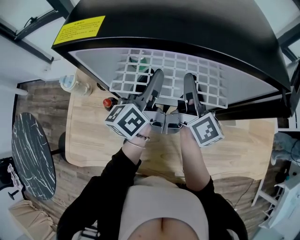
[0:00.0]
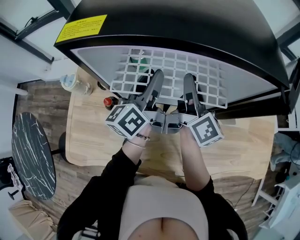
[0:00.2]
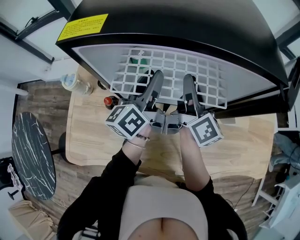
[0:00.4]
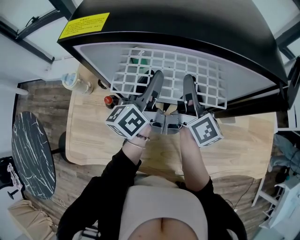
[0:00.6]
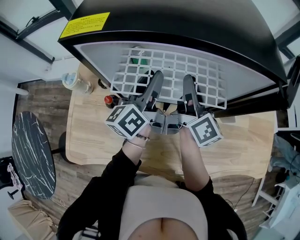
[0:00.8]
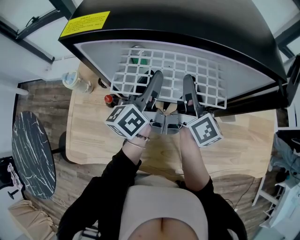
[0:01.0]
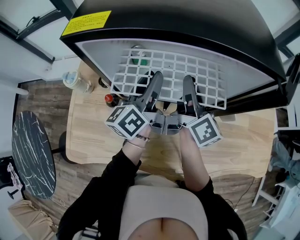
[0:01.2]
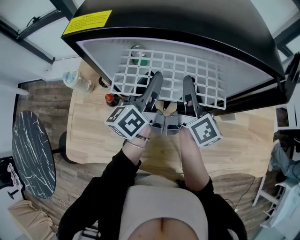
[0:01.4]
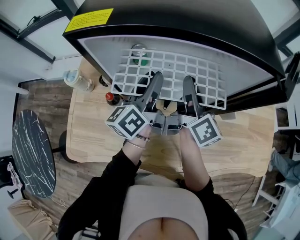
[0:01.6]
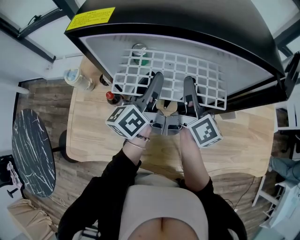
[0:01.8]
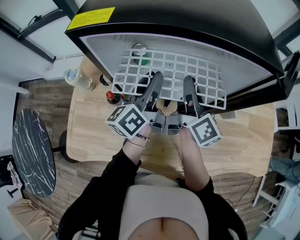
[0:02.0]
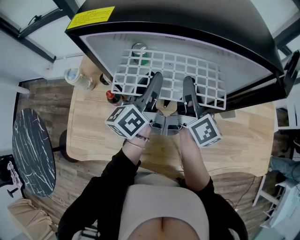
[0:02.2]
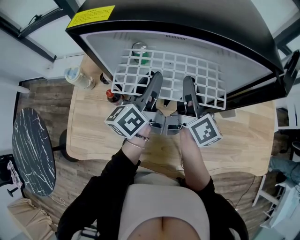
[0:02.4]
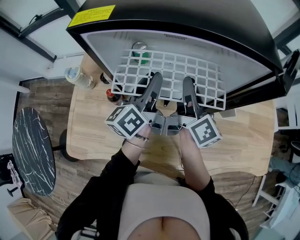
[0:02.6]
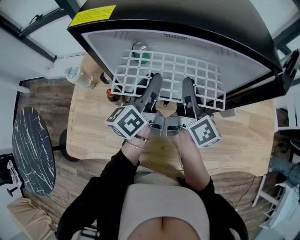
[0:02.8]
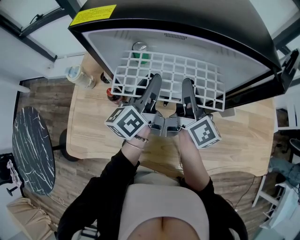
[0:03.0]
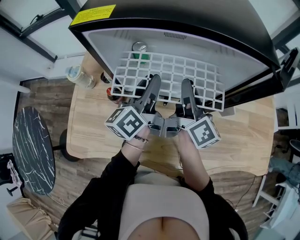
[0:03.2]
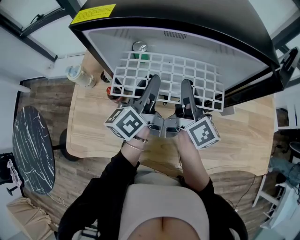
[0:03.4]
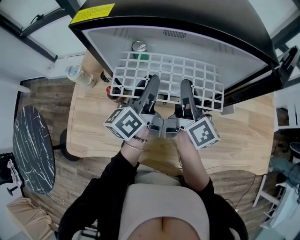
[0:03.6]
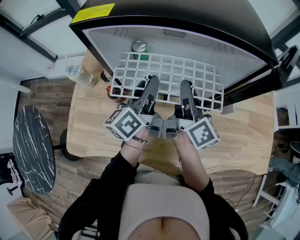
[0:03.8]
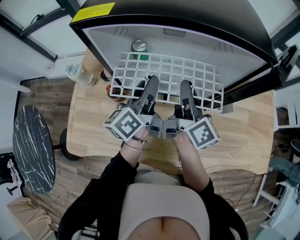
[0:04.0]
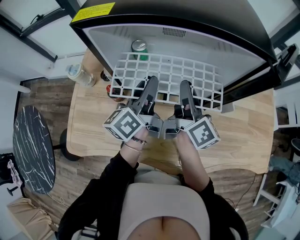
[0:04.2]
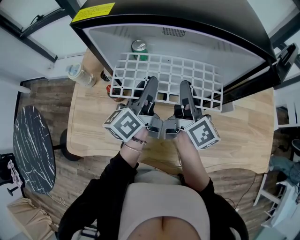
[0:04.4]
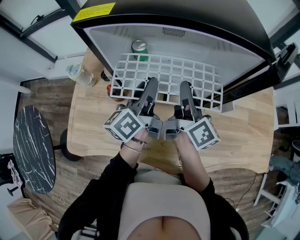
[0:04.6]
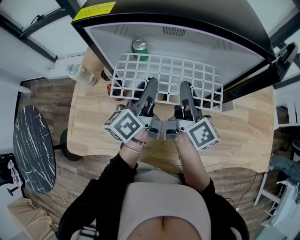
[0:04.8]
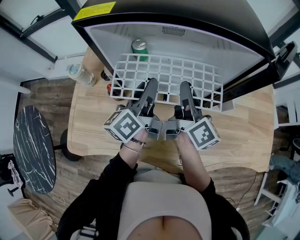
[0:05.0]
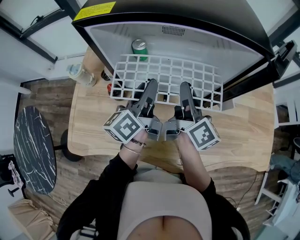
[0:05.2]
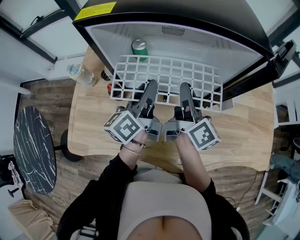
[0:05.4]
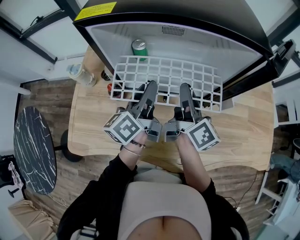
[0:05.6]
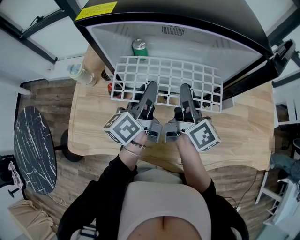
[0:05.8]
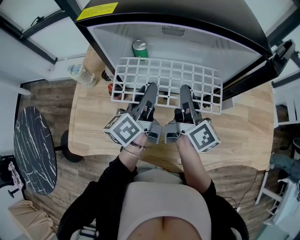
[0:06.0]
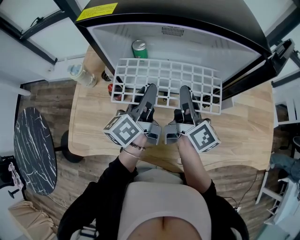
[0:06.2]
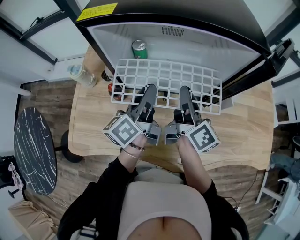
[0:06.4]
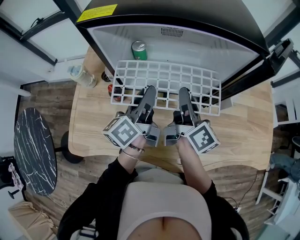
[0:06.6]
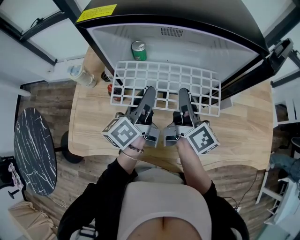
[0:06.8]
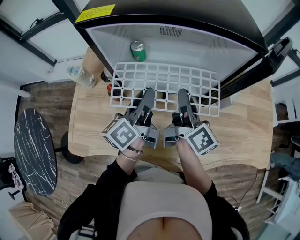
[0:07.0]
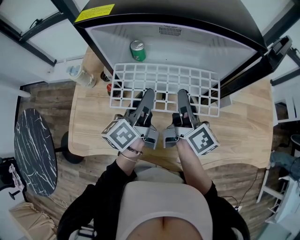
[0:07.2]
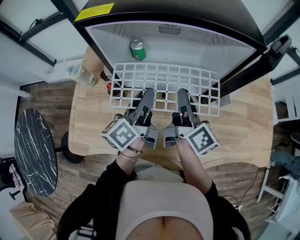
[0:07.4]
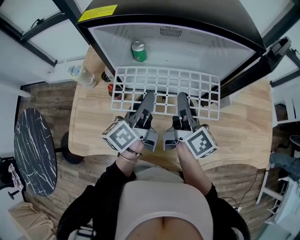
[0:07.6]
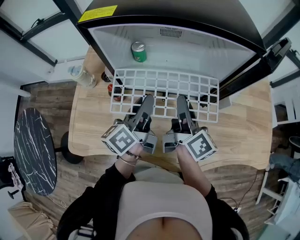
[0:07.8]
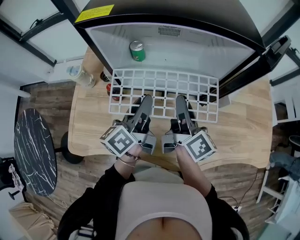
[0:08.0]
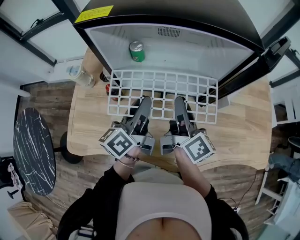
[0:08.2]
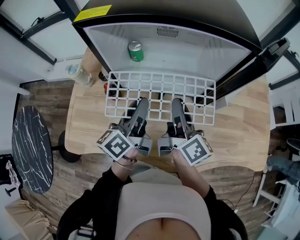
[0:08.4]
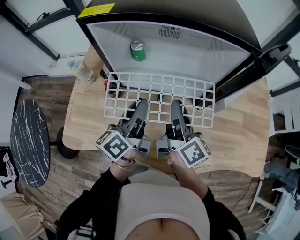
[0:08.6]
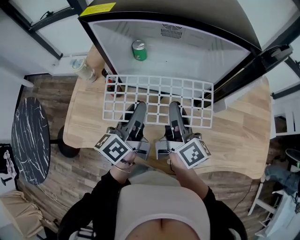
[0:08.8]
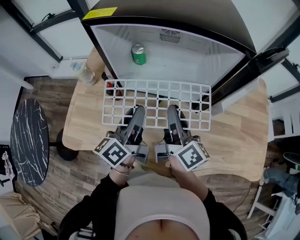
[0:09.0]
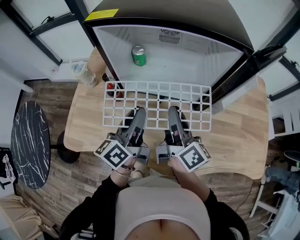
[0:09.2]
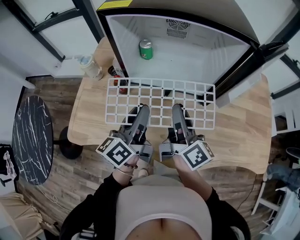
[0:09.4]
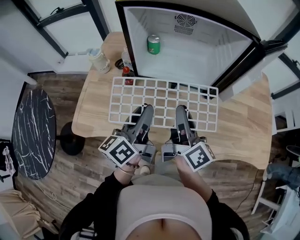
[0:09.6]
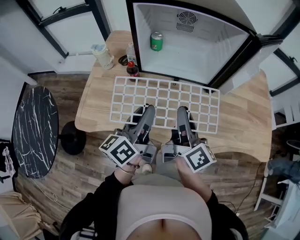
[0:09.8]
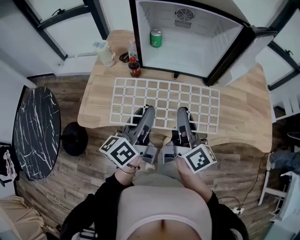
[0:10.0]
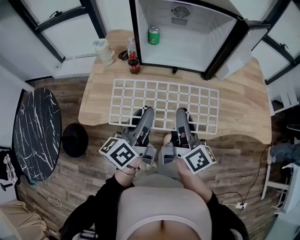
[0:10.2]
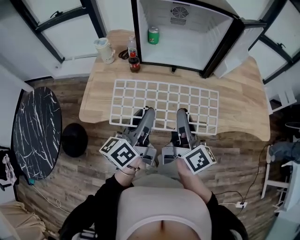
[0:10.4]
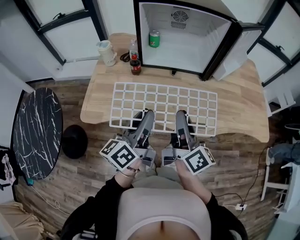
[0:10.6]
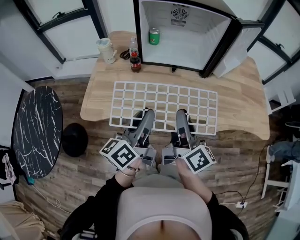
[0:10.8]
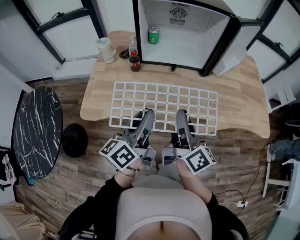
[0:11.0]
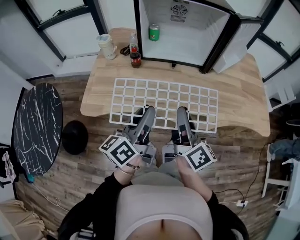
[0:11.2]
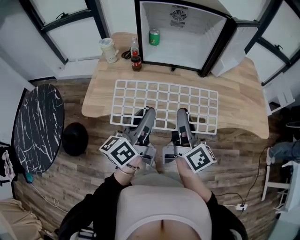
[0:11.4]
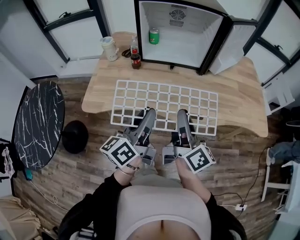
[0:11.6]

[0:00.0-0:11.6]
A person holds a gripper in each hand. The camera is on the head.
0:00.0 to 0:02.8: The grippers stay close to where they were, moving slightly.
0:02.8 to 0:05.8: The grippers move only a little.
0:05.8 to 0:07.2: There are only small adjustments of the grippers.
0:07.2 to 0:08.8: The left gripper heads backward, covering some 5 cm.
0:08.8 to 0:10.2: Both grippers travel together backward, some 20 cm.
0:10.2 to 0:11.6: Both grippers move backward, roughly 10 cm.

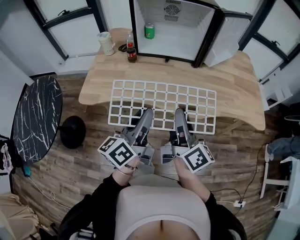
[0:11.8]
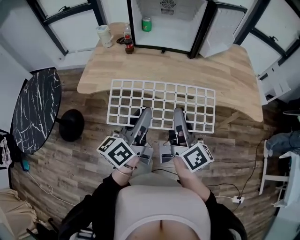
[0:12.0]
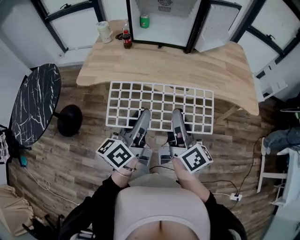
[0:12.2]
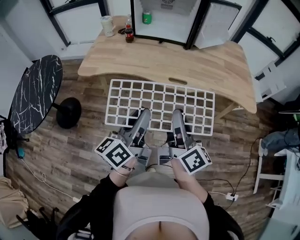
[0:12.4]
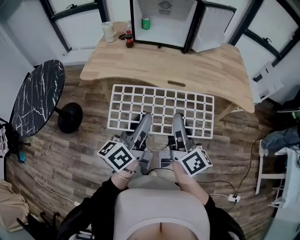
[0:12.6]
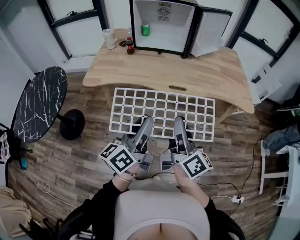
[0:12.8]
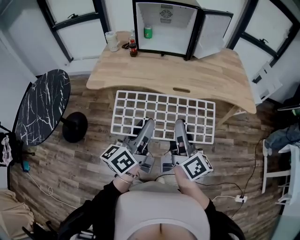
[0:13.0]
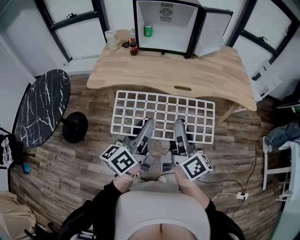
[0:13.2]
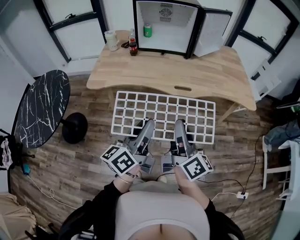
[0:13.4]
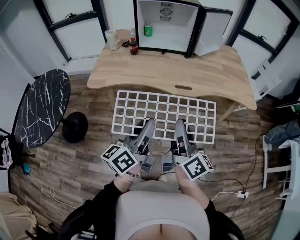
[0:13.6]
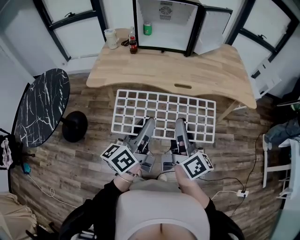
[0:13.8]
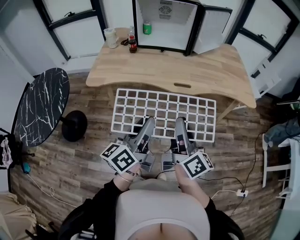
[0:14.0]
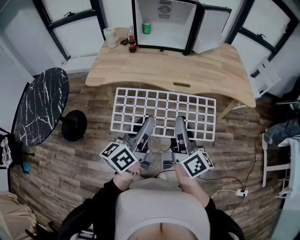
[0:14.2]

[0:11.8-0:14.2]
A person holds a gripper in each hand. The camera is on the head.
0:11.8 to 0:13.0: The grippers both shift backward by some 20 cm.
0:13.0 to 0:14.2: The grippers move only a little.

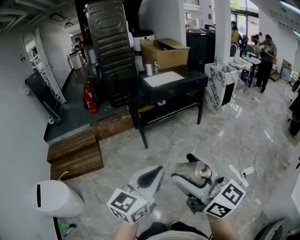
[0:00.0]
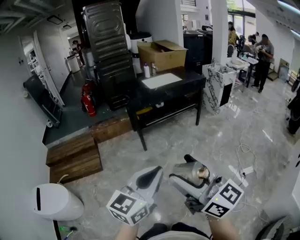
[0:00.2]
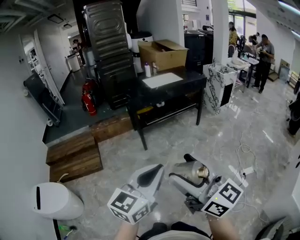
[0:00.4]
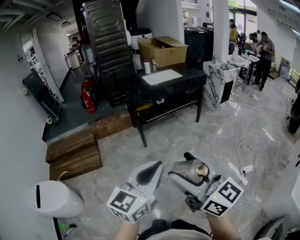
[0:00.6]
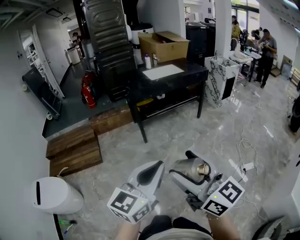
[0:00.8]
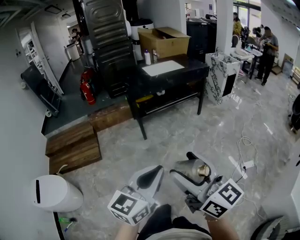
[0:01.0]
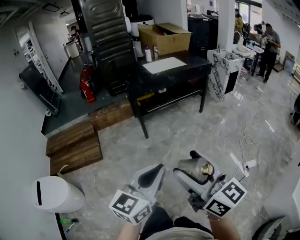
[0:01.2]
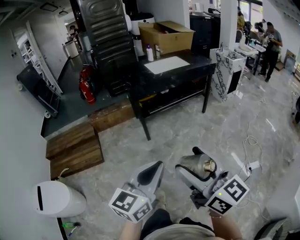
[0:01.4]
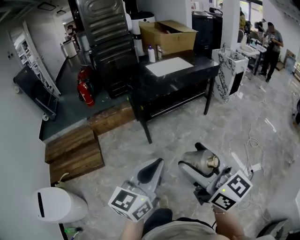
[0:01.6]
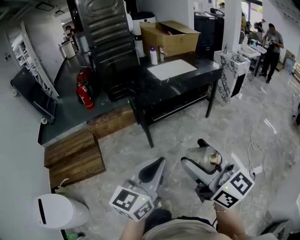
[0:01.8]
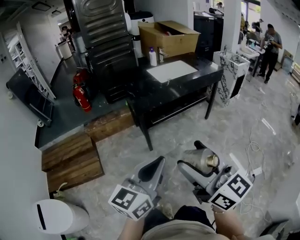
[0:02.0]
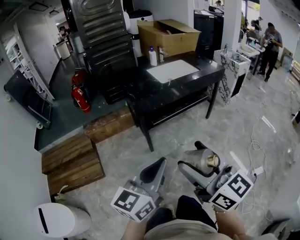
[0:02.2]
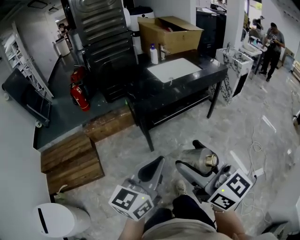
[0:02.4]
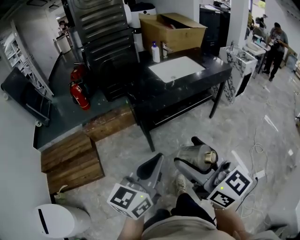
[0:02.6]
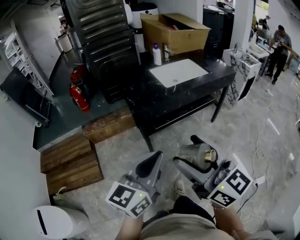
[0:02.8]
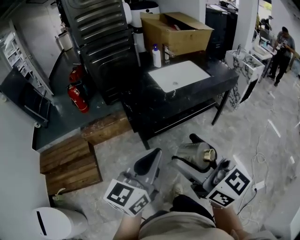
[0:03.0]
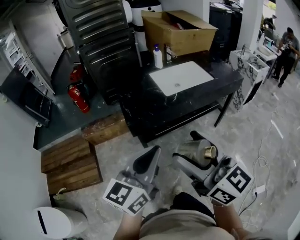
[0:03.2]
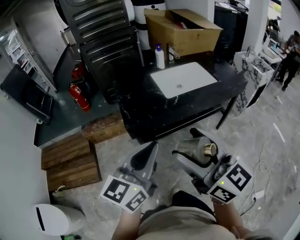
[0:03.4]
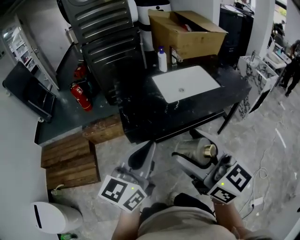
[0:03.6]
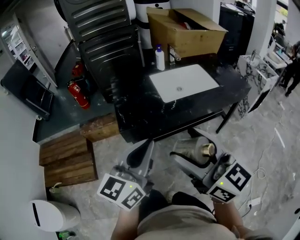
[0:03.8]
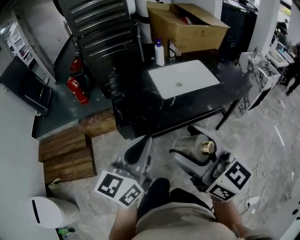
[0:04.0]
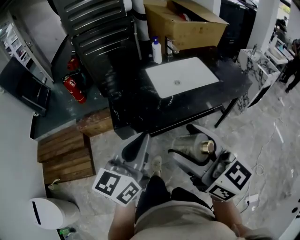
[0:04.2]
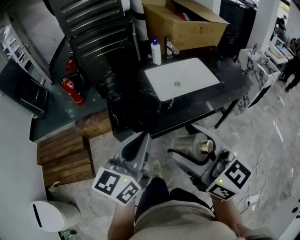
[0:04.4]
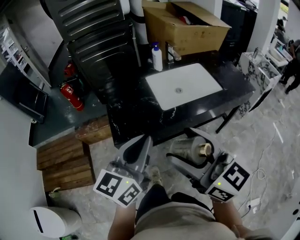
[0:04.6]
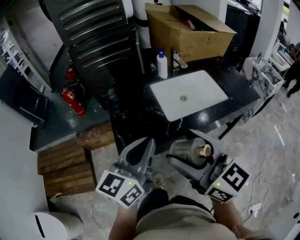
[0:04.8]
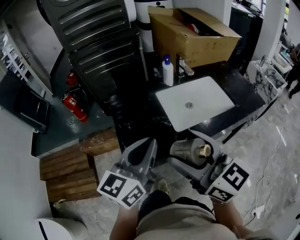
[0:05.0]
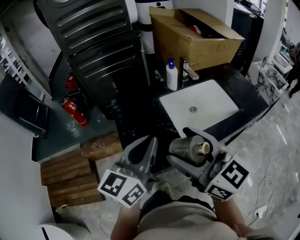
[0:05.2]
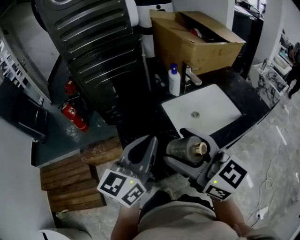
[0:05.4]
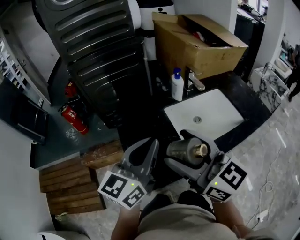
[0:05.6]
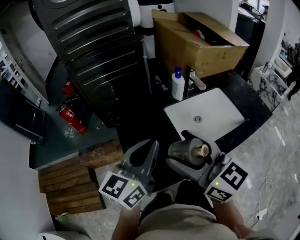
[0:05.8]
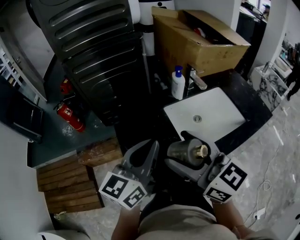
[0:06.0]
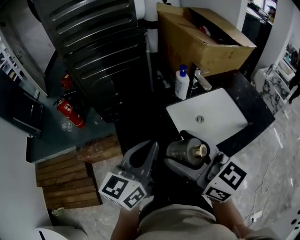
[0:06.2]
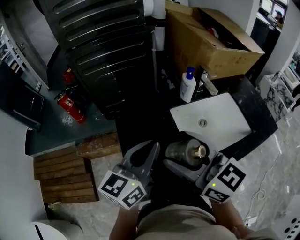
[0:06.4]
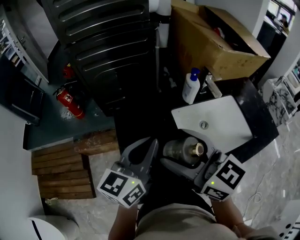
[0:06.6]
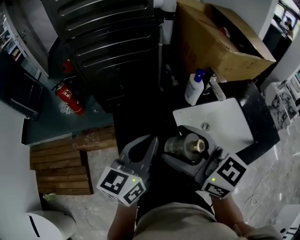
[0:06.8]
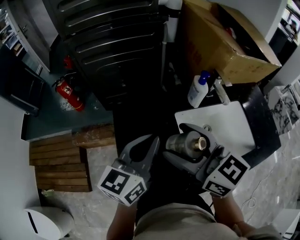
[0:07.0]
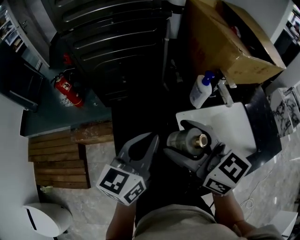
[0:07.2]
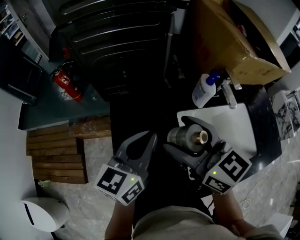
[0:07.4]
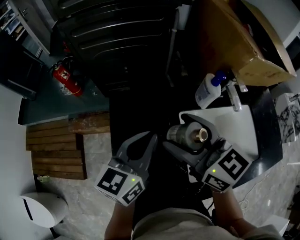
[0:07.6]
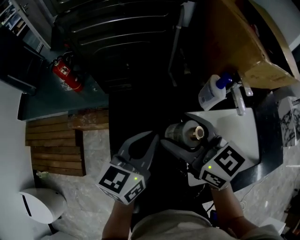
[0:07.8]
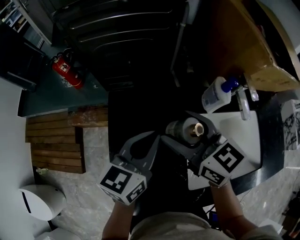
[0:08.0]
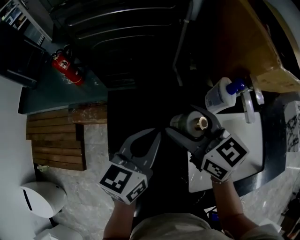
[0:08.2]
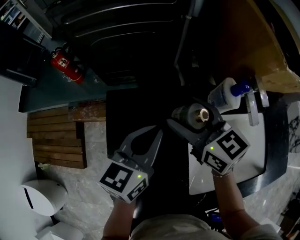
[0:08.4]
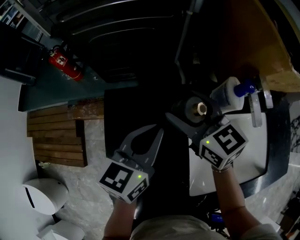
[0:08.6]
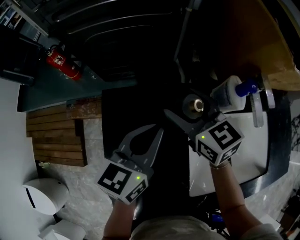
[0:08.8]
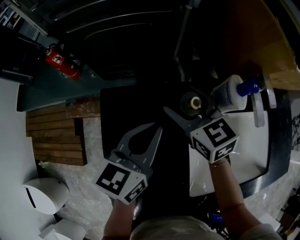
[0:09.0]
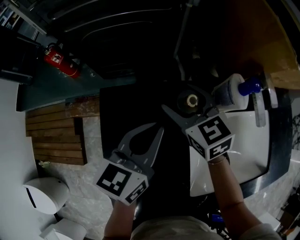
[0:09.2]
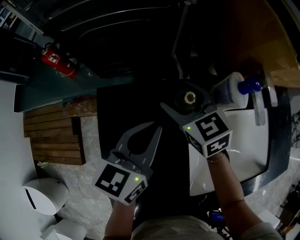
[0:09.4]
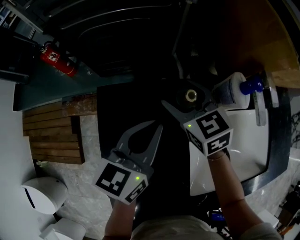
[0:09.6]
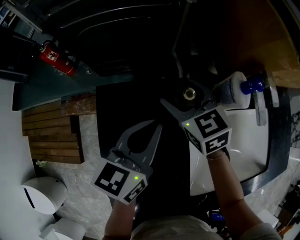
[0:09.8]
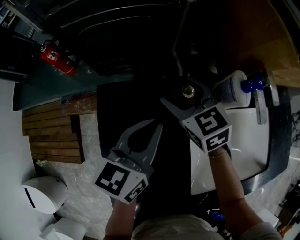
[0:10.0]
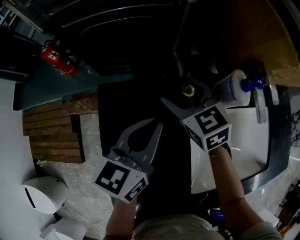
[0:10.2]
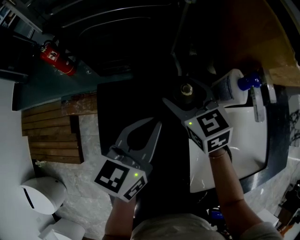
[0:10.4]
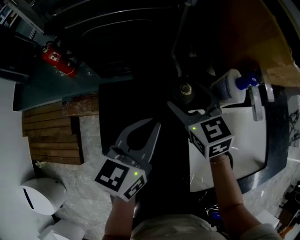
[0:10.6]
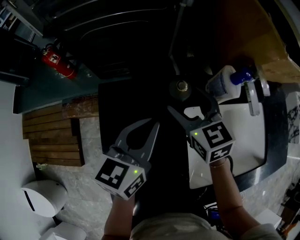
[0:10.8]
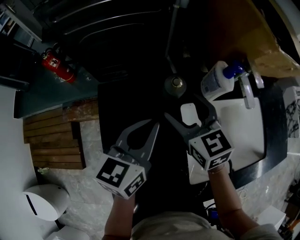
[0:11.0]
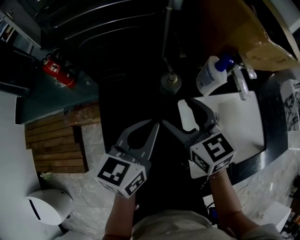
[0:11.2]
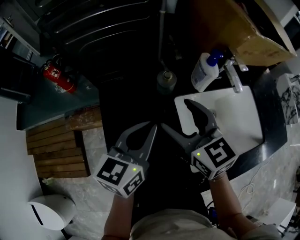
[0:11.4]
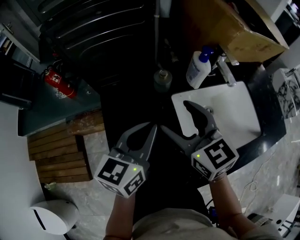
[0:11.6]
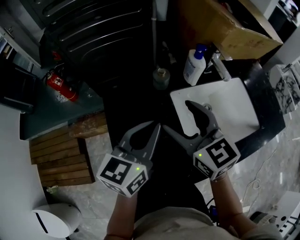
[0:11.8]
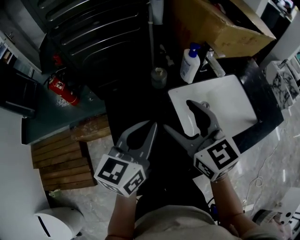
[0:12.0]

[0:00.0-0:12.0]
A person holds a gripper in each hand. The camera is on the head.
0:00.0 to 0:01.6: Both grippers move forward, about 25 cm.
0:01.6 to 0:03.0: Both grippers move forward, approximately 40 cm.
0:03.0 to 0:04.4: The left gripper shifts some 20 cm forward; the right gripper heads forward and to the right, covering some 25 cm.
0:04.4 to 0:06.0: The two grippers go approximately 30 cm forward.
0:06.0 to 0:07.6: The left gripper is displaced forward and downward by some 20 cm, while the right gripper goes about 25 cm forward.
0:07.6 to 0:09.0: The left gripper shifts roughly 10 cm forward and downward. The right gripper moves forward and downward, about 20 cm.
0:09.0 to 0:10.4: There are only small adjustments of the grippers.
0:10.4 to 0:12.0: The two grippers go roughly 25 cm backward and upward. The right gripper changes its angle by approximately 20 degrees.
